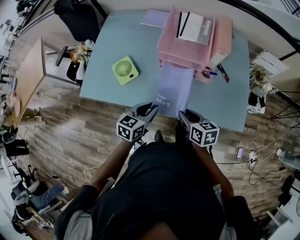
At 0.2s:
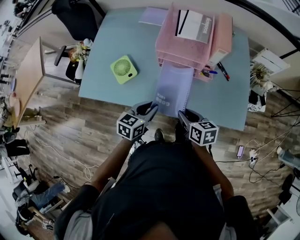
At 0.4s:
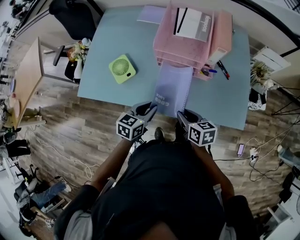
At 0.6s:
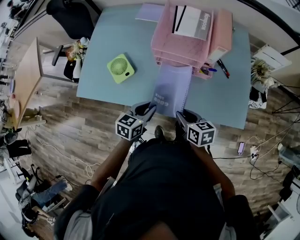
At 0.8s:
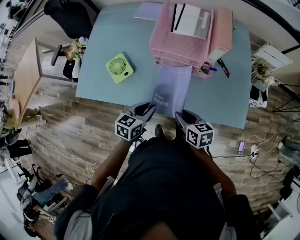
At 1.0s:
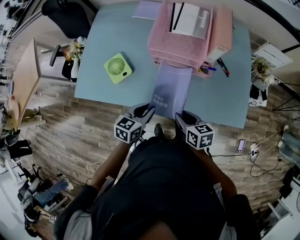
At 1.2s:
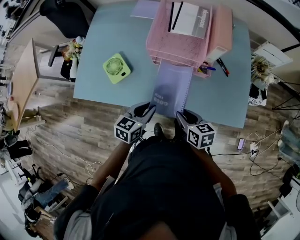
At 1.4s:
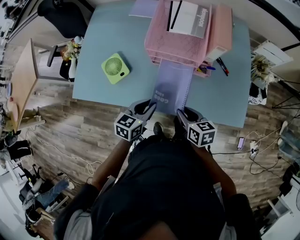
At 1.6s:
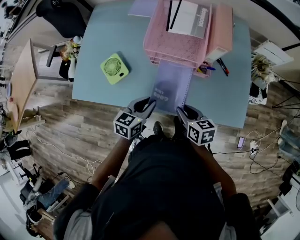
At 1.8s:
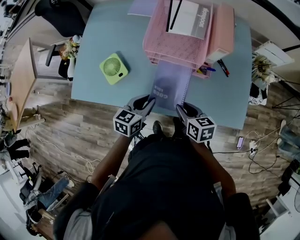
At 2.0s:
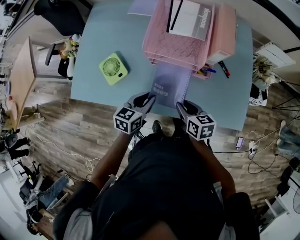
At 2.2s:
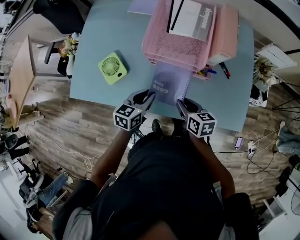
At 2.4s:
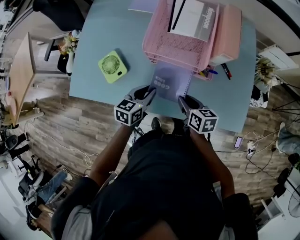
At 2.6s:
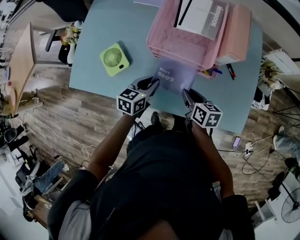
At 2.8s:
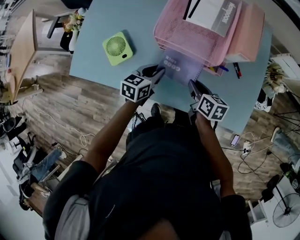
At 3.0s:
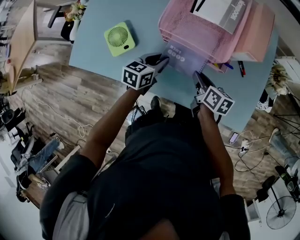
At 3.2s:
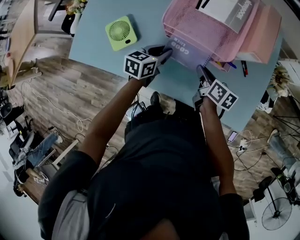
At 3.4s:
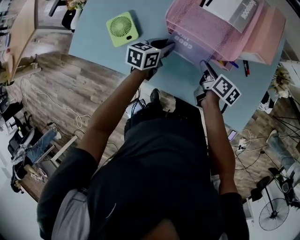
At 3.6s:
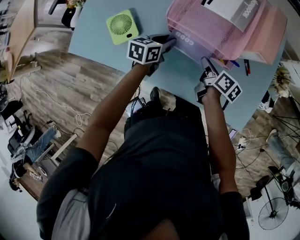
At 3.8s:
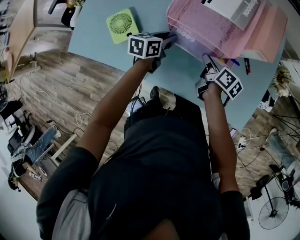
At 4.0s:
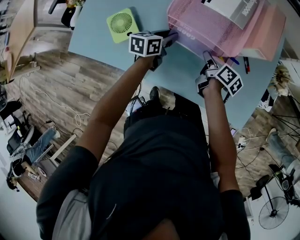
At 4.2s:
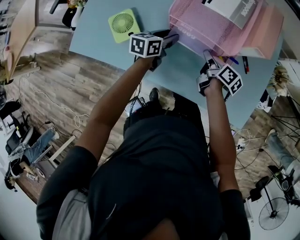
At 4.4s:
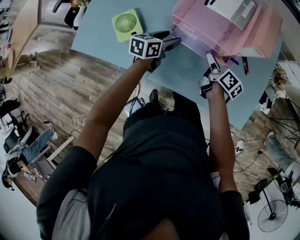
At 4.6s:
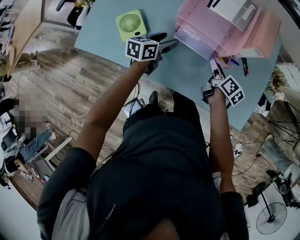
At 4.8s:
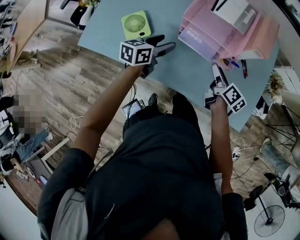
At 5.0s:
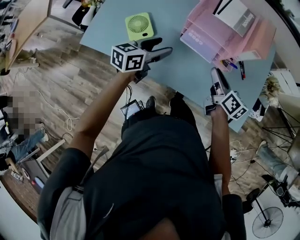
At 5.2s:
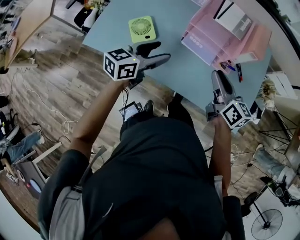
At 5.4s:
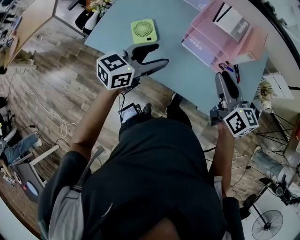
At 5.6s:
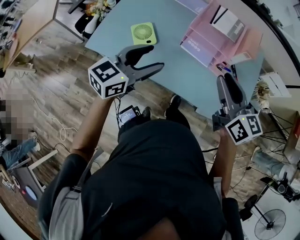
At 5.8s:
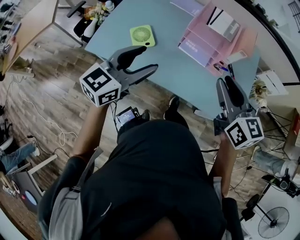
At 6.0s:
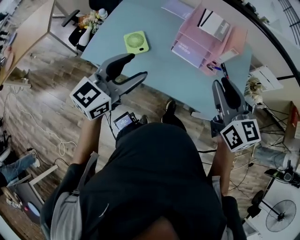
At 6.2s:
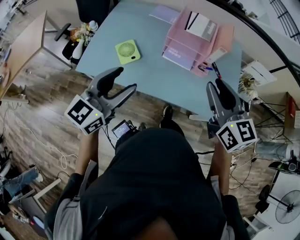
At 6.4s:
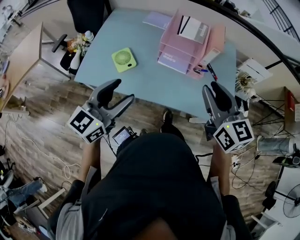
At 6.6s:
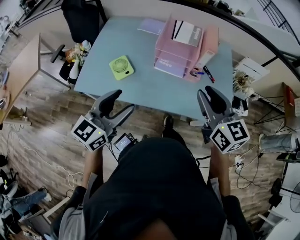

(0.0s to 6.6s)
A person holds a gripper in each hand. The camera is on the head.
0.0s - 1.6s: The right gripper moves some 5 cm. The left gripper moves some 5 cm.
1.6s - 3.2s: Both grippers move forward and downward, some 15 cm. The right gripper turns by some 20 degrees.
3.2s - 5.0s: The left gripper goes some 15 cm upward, backward and to the left, and opens up, while the right gripper is displaced upward by about 10 cm, and opens and closes again.
5.0s - 6.6s: The left gripper moves backward and upward, some 30 cm, and changes its angle by some 30 degrees. The right gripper shifts approximately 30 cm upward and backward, and changes its angle by about 40 degrees.

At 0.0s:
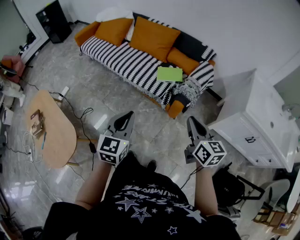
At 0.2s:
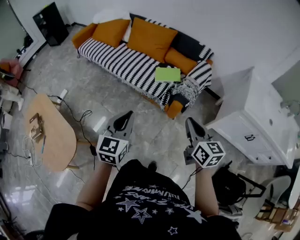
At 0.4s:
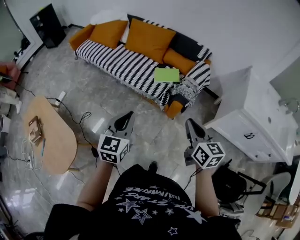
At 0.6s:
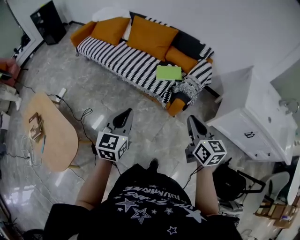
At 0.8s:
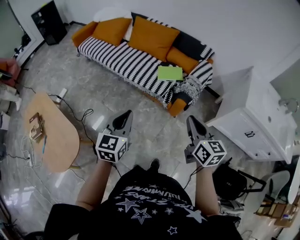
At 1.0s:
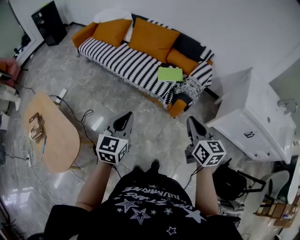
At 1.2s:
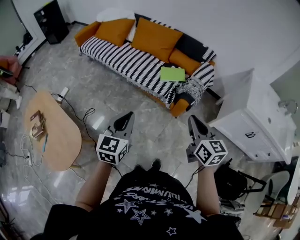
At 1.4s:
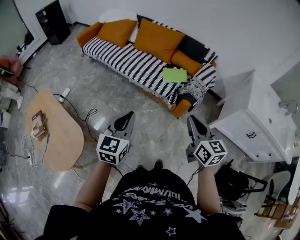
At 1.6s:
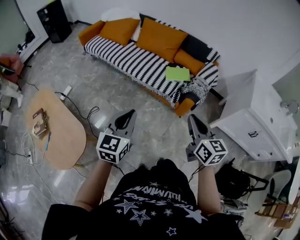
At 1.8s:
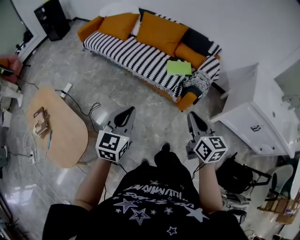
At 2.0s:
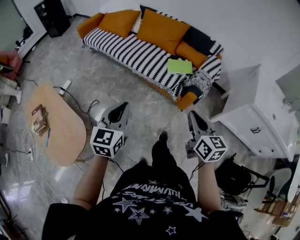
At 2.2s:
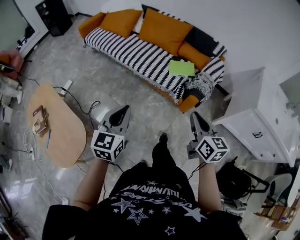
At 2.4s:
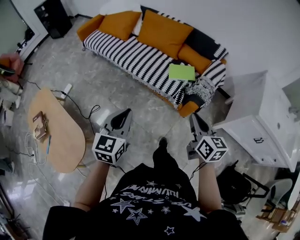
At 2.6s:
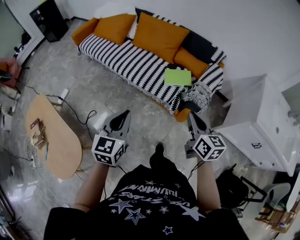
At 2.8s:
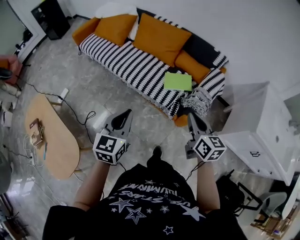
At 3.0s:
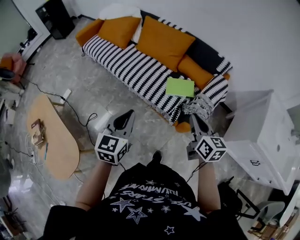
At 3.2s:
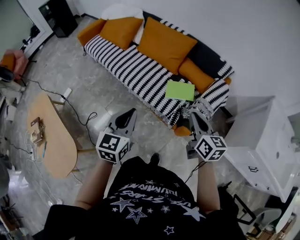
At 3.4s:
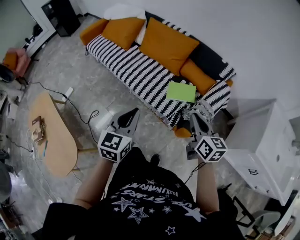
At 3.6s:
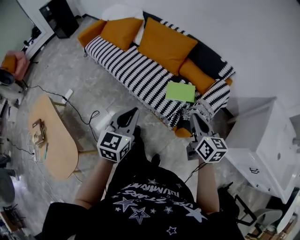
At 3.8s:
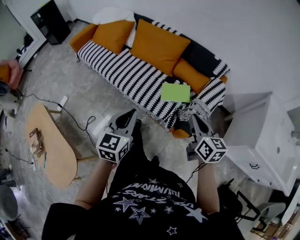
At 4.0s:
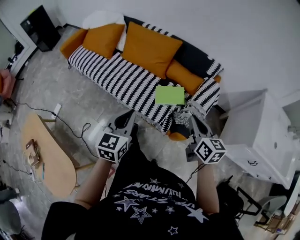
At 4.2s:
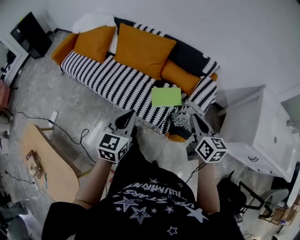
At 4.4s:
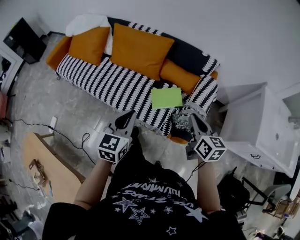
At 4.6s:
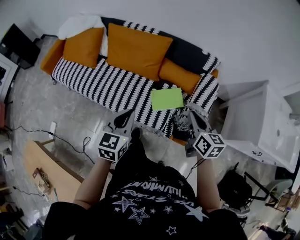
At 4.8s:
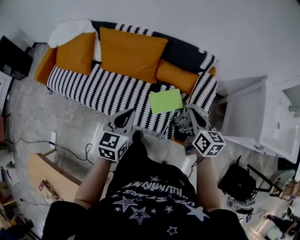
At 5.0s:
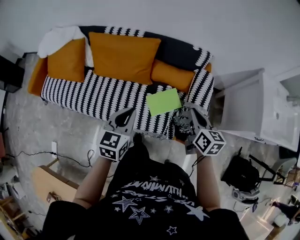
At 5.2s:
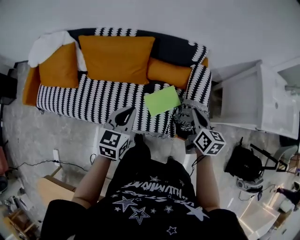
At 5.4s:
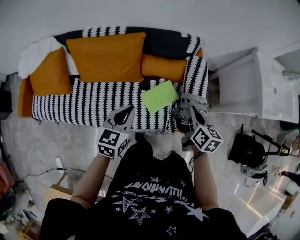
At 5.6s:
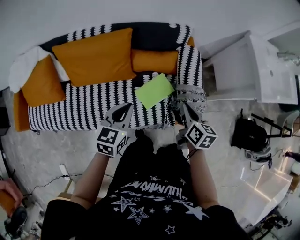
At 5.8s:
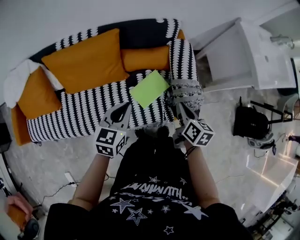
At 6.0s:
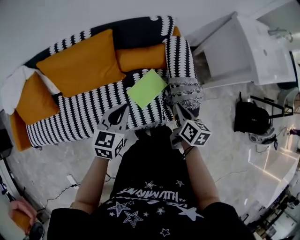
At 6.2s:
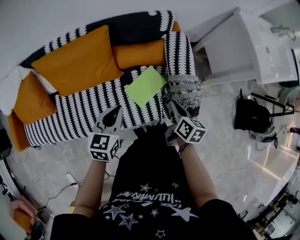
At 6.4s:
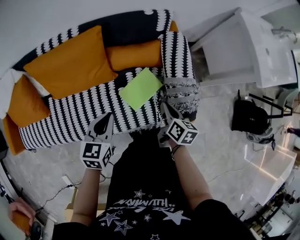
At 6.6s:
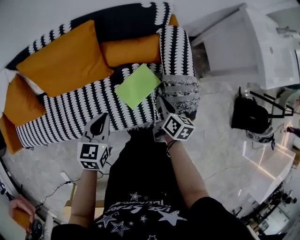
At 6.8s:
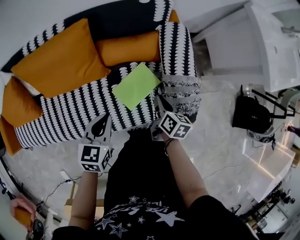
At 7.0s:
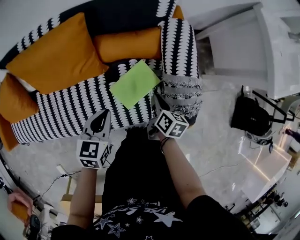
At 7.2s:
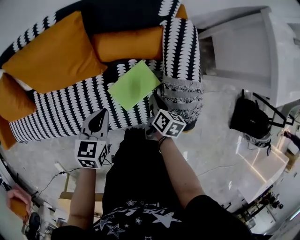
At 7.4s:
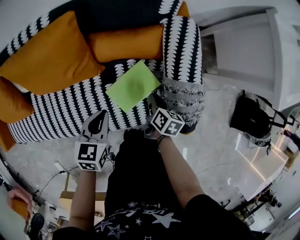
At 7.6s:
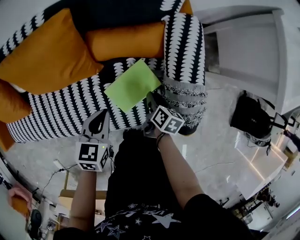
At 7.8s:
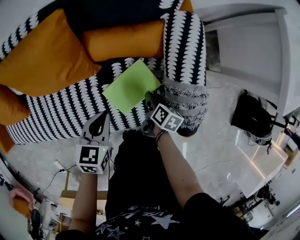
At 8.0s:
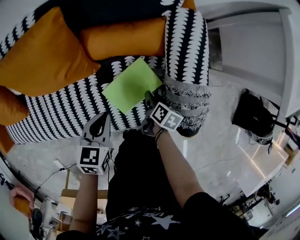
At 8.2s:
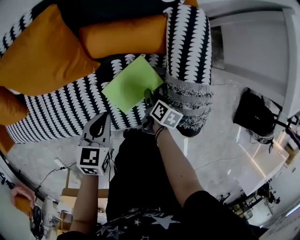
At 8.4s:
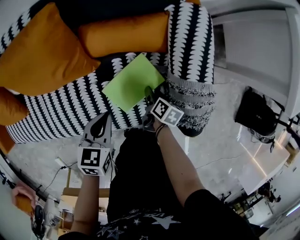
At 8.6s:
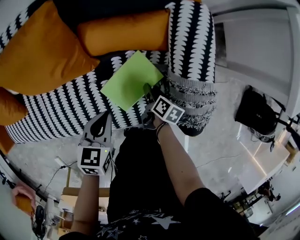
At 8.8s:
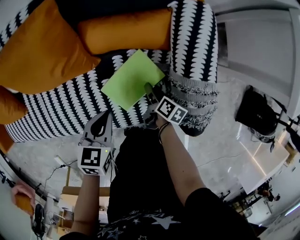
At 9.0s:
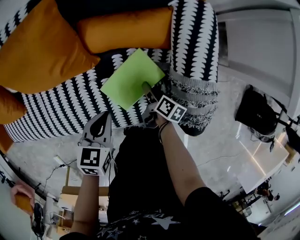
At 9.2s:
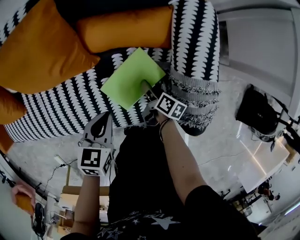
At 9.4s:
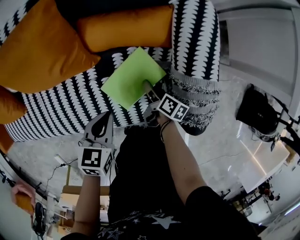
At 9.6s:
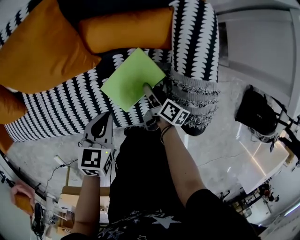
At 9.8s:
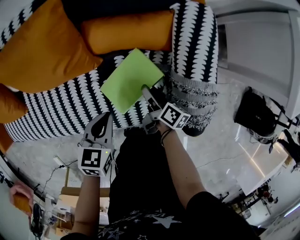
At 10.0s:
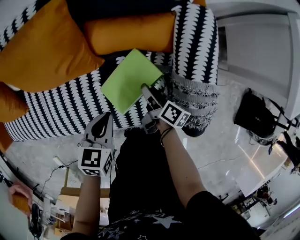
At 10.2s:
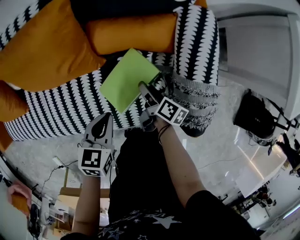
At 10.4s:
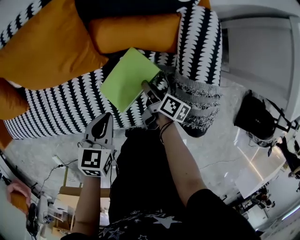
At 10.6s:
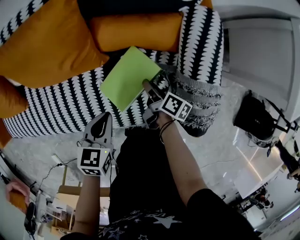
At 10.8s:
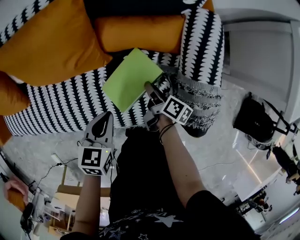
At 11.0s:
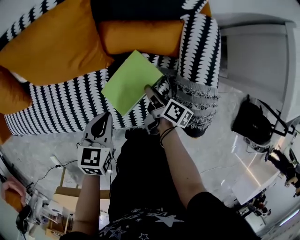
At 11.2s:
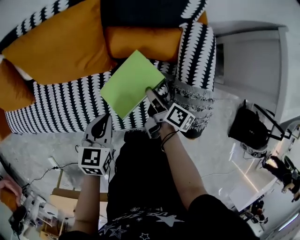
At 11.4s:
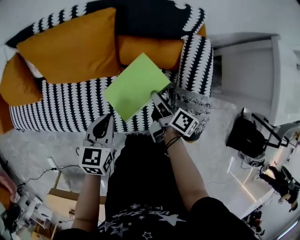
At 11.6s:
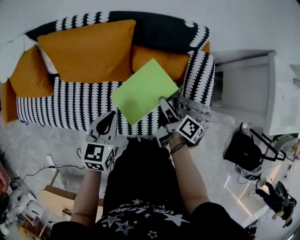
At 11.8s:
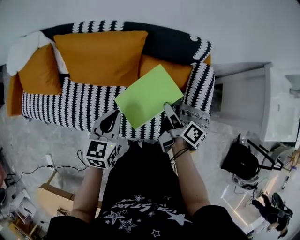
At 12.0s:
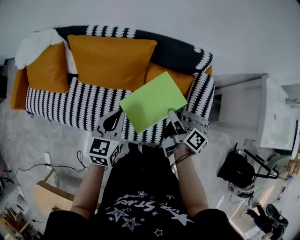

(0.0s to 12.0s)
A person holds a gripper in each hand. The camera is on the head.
0.0s - 1.6s: The grippers both shift to the left by roughly 10 cm.
1.6s - 3.0s: Both grippers move forward, some 25 cm.
3.0s - 4.4s: Both grippers travel together forward, approximately 15 cm.
4.4s - 6.0s: The right gripper travels downward by approximately 15 cm, and changes its angle by about 50 degrees. The left gripper shifts by roughly 25 cm, and swivels about 40 degrees.
6.0s - 7.6s: The two grippers go approximately 25 cm downward. The right gripper opens up.
7.6s - 9.0s: The right gripper shifts roughly 10 cm downward.
9.0s - 10.4s: The right gripper shifts by approximately 5 cm.
10.4s - 12.0s: The left gripper travels upward and to the left by some 25 cm, and changes its angle by approximately 30 degrees. Meanwhile the right gripper moves upward, about 30 cm, and rotates about 20 degrees.

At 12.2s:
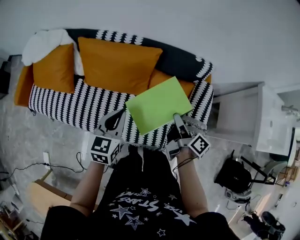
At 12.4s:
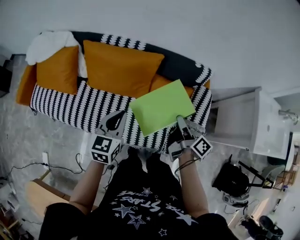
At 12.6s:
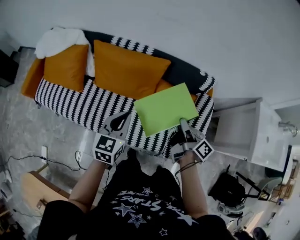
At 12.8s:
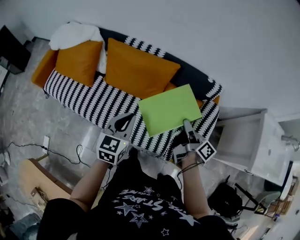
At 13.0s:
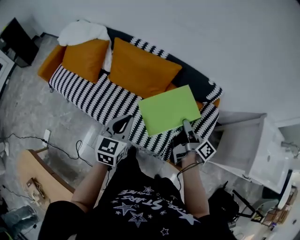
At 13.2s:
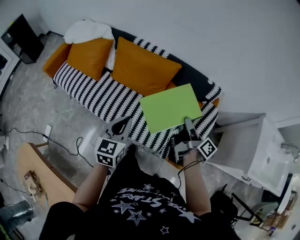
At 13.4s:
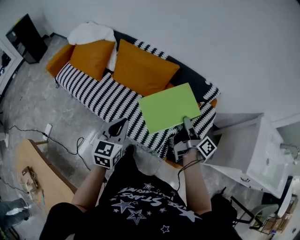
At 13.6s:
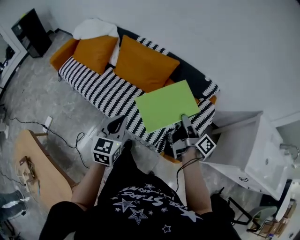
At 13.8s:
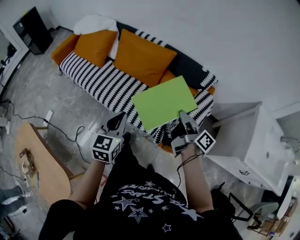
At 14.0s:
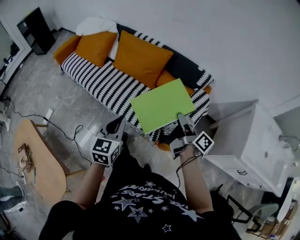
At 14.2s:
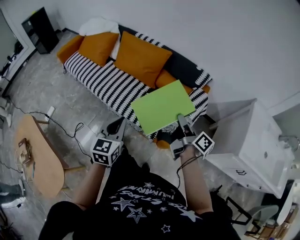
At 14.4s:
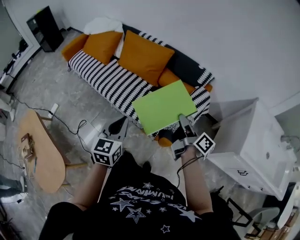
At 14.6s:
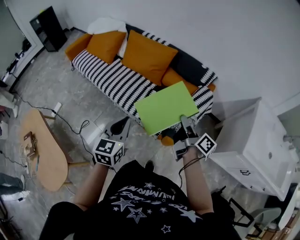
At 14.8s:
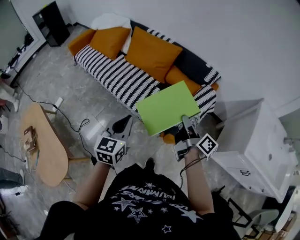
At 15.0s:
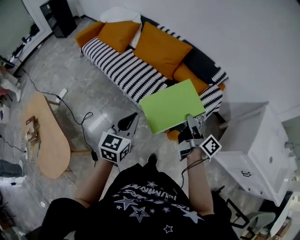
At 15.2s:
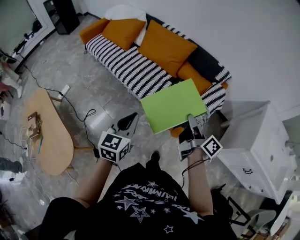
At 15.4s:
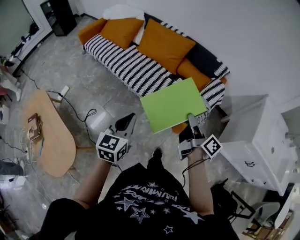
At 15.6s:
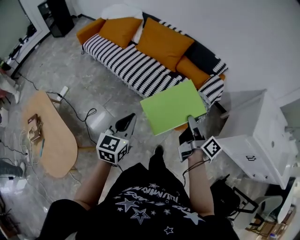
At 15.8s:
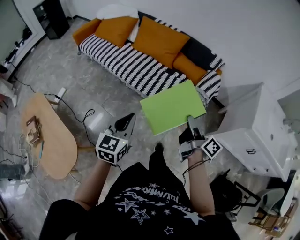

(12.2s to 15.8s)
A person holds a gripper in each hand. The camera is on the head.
12.2s - 14.0s: The left gripper is displaced backward by about 30 cm, and changes its angle by some 20 degrees. Meanwhile the right gripper moves backward, to the right and upward, about 25 cm, and turns by approximately 20 degrees.
14.0s - 15.8s: Both grippers move backward, approximately 25 cm.

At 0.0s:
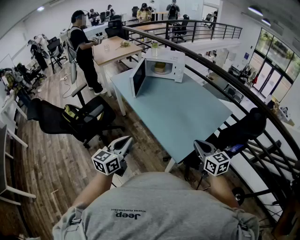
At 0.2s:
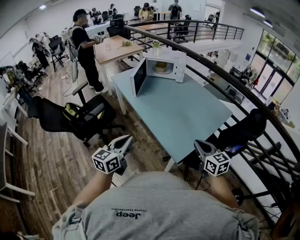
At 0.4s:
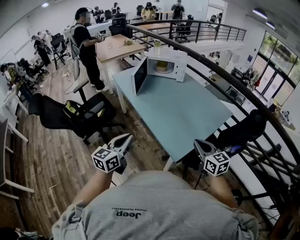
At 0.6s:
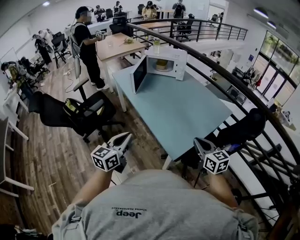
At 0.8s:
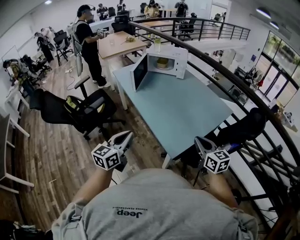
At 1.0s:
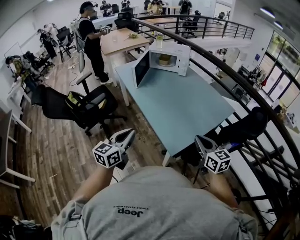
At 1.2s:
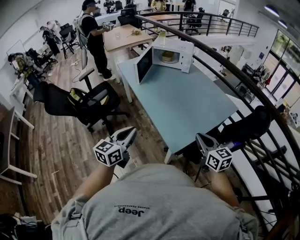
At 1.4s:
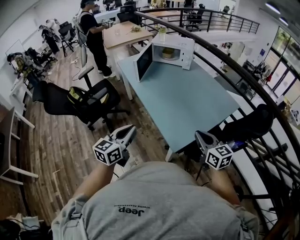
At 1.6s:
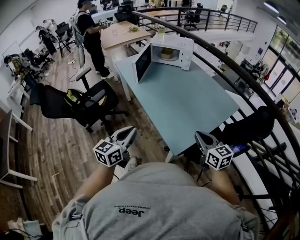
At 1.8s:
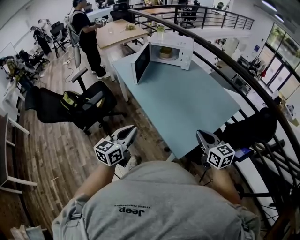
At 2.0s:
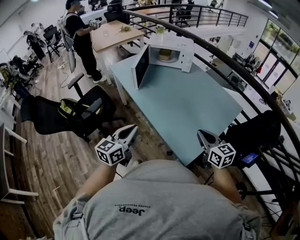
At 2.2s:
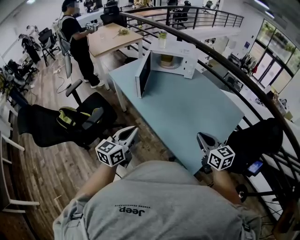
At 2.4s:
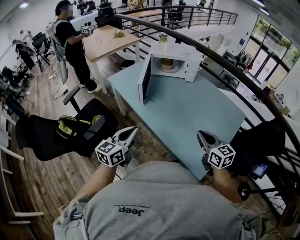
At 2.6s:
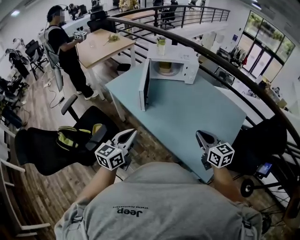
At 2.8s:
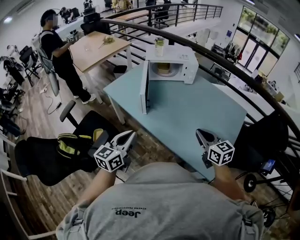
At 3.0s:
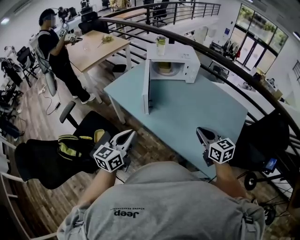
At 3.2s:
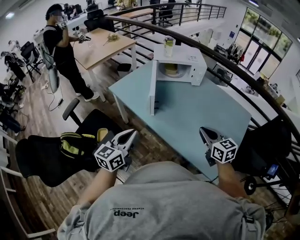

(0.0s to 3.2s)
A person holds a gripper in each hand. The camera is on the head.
0.0s - 1.6s: There are only small adjustments of the grippers.
1.6s - 3.2s: Both grippers travel together to the left and forward, roughly 40 cm.
